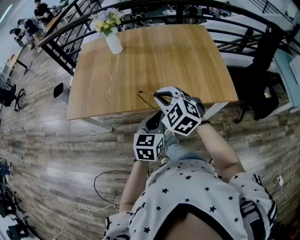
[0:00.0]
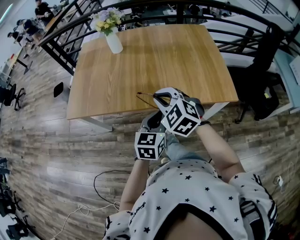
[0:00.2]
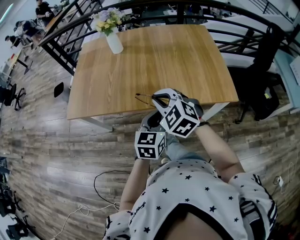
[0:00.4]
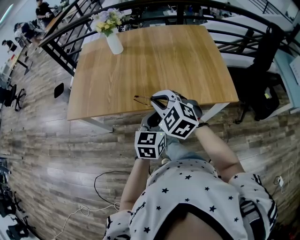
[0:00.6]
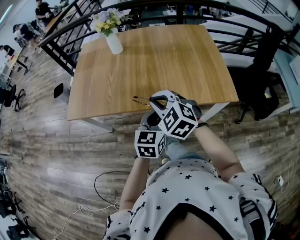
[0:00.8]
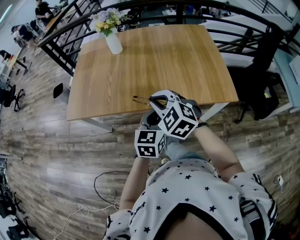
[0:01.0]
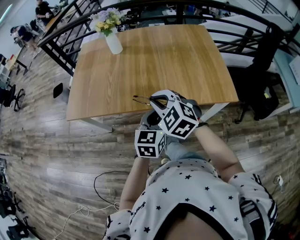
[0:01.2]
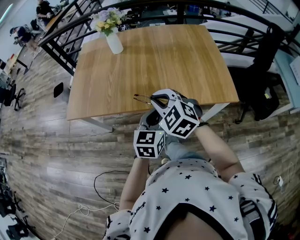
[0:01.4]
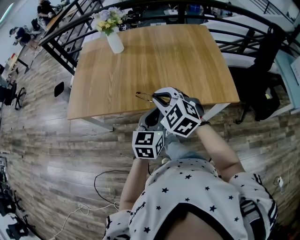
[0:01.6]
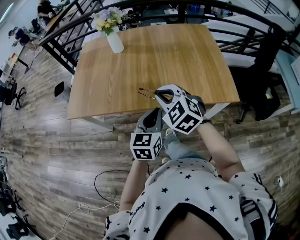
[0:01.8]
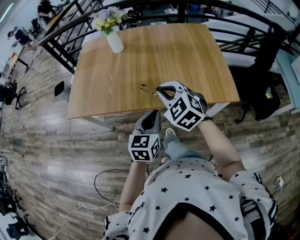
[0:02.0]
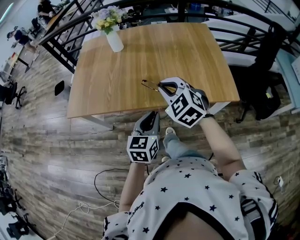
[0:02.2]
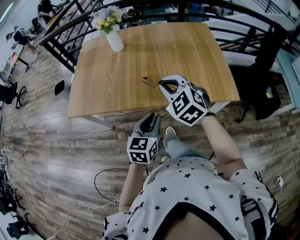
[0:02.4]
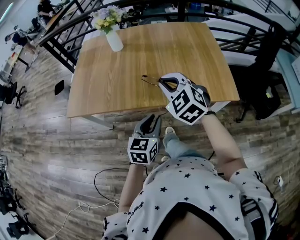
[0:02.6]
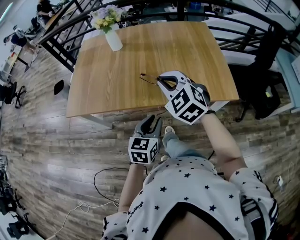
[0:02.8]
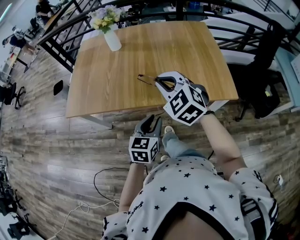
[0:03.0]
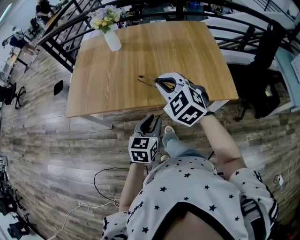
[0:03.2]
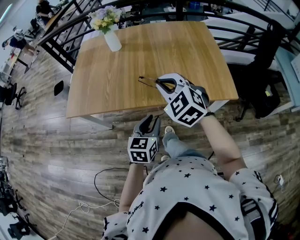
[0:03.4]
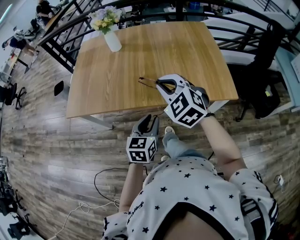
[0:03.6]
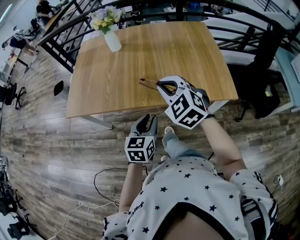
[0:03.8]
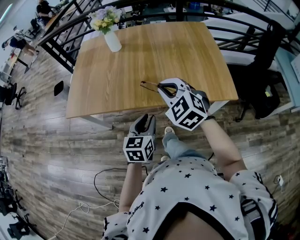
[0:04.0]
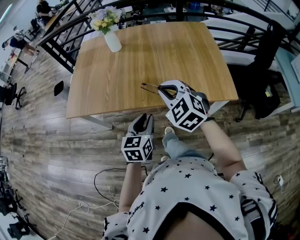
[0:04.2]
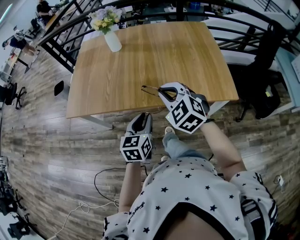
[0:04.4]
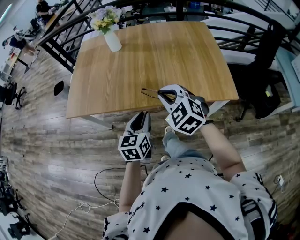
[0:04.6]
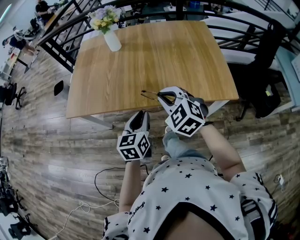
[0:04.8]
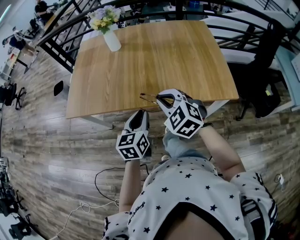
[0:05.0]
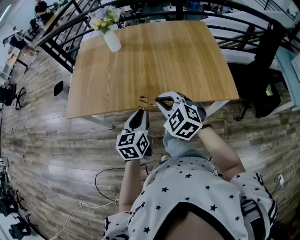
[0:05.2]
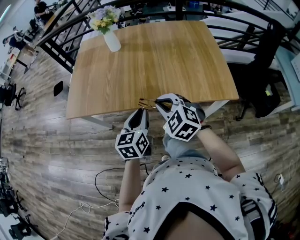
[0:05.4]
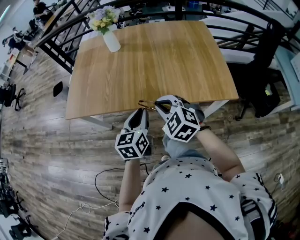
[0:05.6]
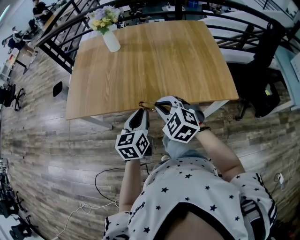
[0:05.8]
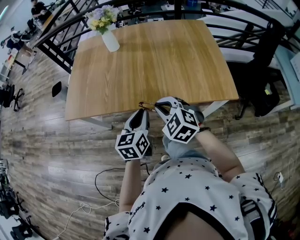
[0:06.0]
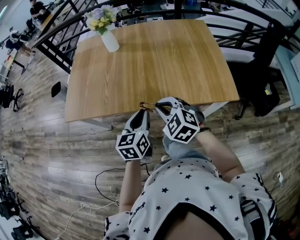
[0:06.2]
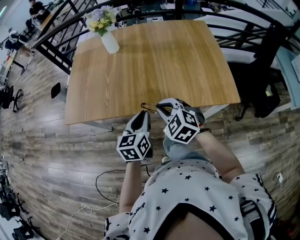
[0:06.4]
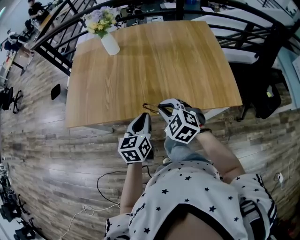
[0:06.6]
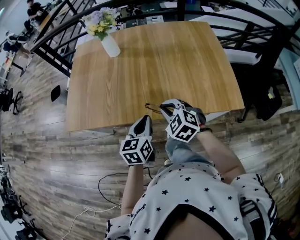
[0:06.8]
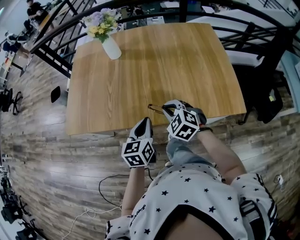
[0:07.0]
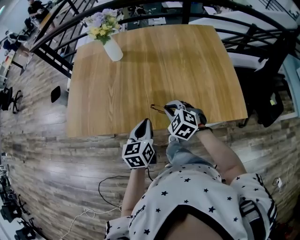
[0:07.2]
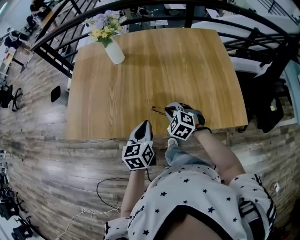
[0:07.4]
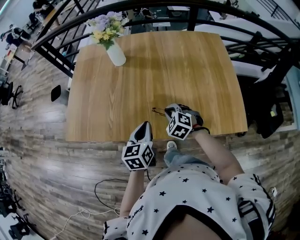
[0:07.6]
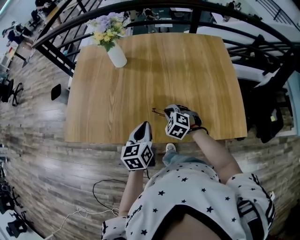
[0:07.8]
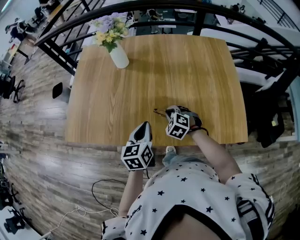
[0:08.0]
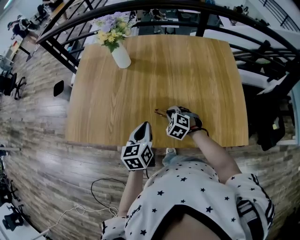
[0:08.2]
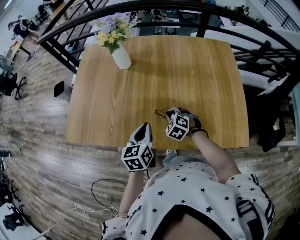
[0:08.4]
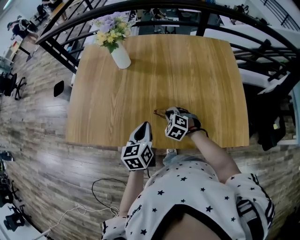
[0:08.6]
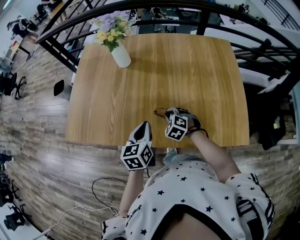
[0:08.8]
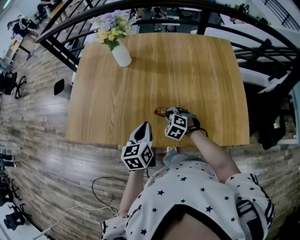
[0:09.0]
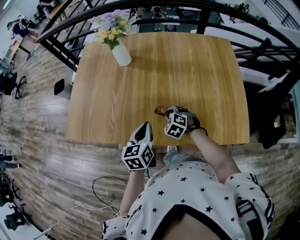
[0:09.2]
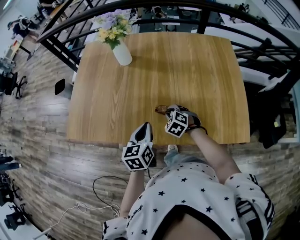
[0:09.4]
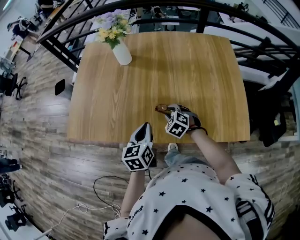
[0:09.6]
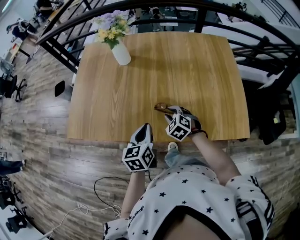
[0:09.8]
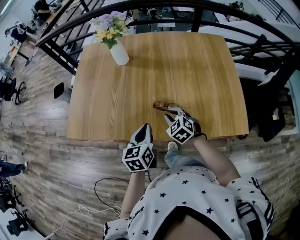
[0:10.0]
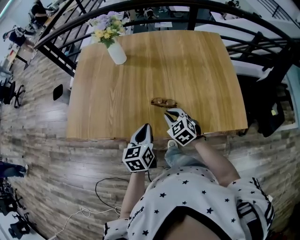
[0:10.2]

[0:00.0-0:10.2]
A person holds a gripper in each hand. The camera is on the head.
0:00.0 to 0:01.4: The grippers stay close to where they were, moving slightly.
0:01.4 to 0:03.0: The left gripper moves about 5 cm, and opens. Meanwhile the right gripper shifts by roughly 5 cm.
0:03.0 to 0:04.4: The grippers stay close to where they were, moving slightly.
0:04.4 to 0:05.8: The right gripper moves downward, roughly 5 cm.
0:05.8 to 0:07.2: The right gripper is displaced forward and downward by some 15 cm. Meanwhile the left gripper travels forward by roughly 10 cm.
0:07.2 to 0:08.8: The right gripper shifts about 15 cm downward and forward, while the left gripper shifts roughly 10 cm forward.
0:08.8 to 0:10.2: The left gripper moves backward, some 5 cm, while the right gripper moves backward and upward, about 10 cm, and rotates roughly 30 degrees.

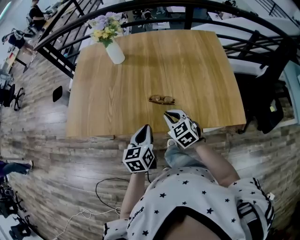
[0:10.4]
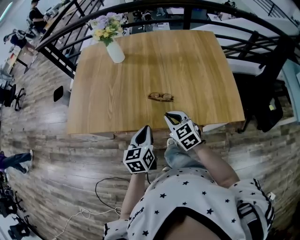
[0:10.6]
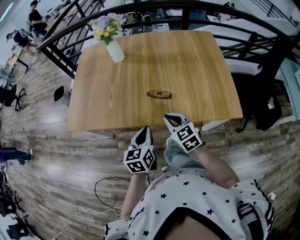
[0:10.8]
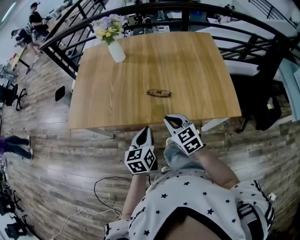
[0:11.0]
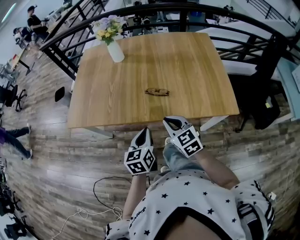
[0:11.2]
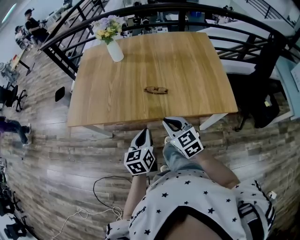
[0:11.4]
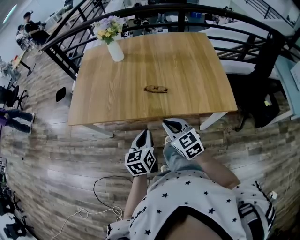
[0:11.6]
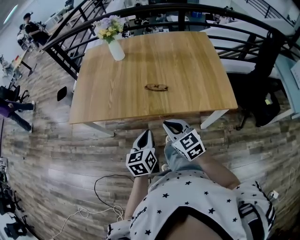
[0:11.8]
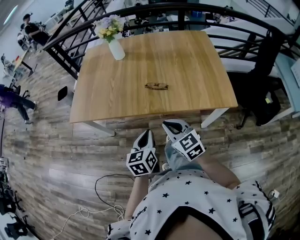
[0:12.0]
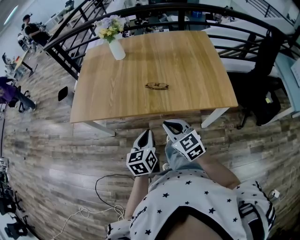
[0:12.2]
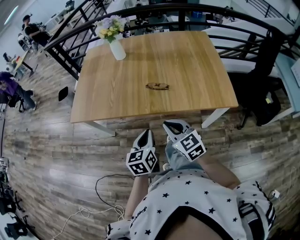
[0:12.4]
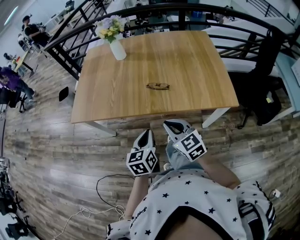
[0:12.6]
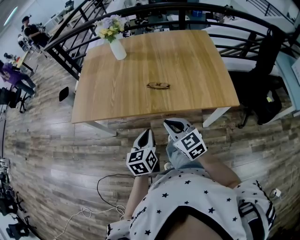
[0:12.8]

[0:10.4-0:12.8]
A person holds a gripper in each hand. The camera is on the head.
0:10.4 to 0:11.6: The left gripper travels backward by some 15 cm, while the right gripper heads backward and upward, covering approximately 15 cm.
0:11.6 to 0:12.8: The grippers make only small movements.

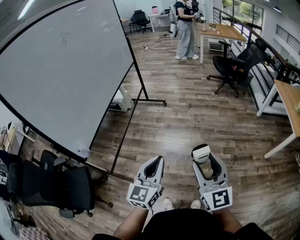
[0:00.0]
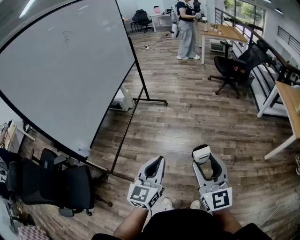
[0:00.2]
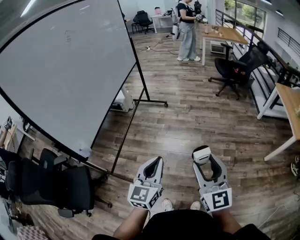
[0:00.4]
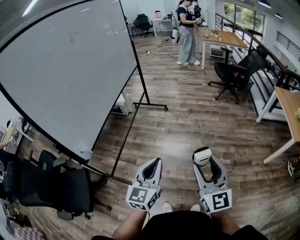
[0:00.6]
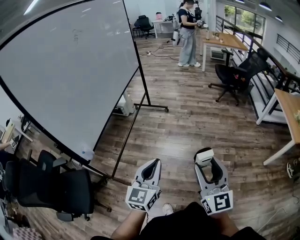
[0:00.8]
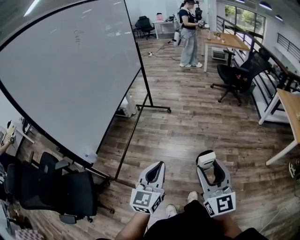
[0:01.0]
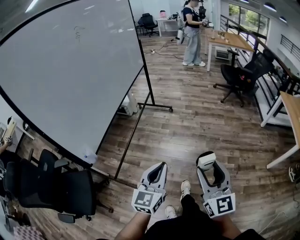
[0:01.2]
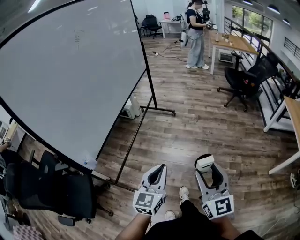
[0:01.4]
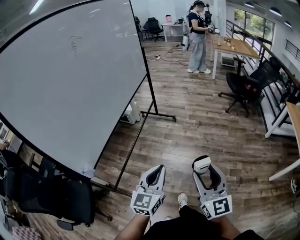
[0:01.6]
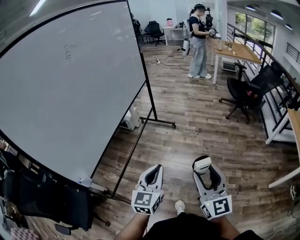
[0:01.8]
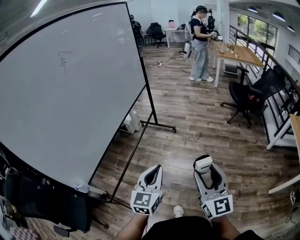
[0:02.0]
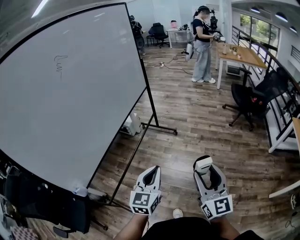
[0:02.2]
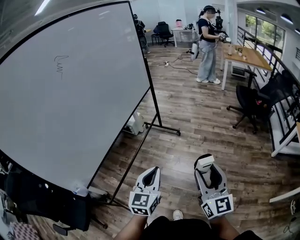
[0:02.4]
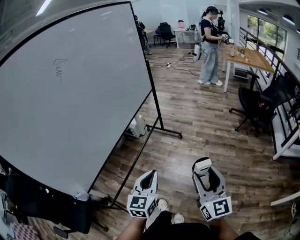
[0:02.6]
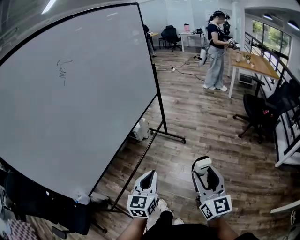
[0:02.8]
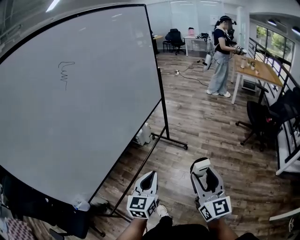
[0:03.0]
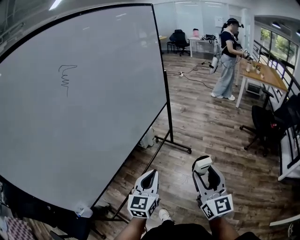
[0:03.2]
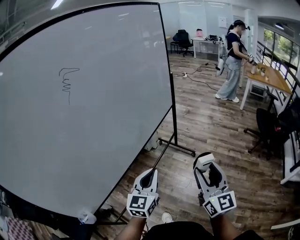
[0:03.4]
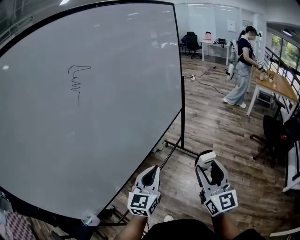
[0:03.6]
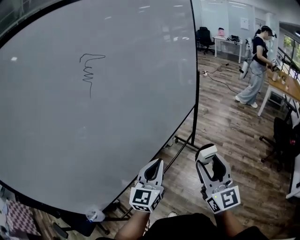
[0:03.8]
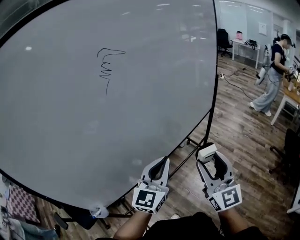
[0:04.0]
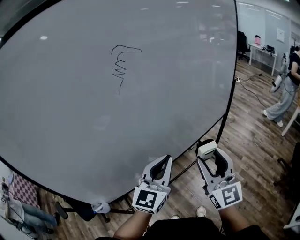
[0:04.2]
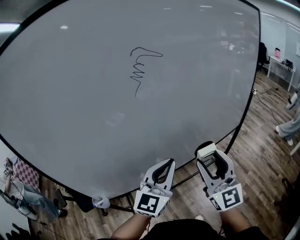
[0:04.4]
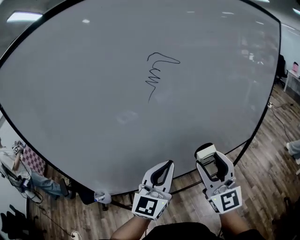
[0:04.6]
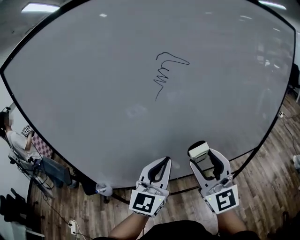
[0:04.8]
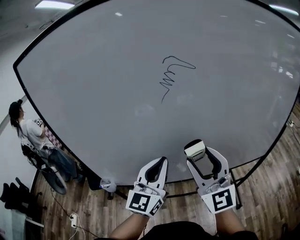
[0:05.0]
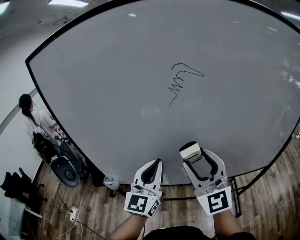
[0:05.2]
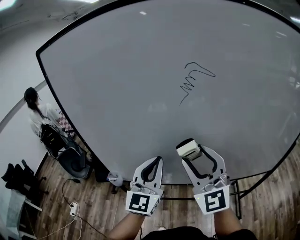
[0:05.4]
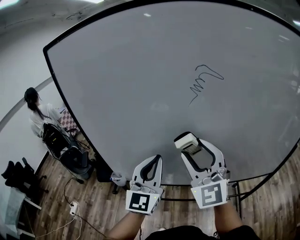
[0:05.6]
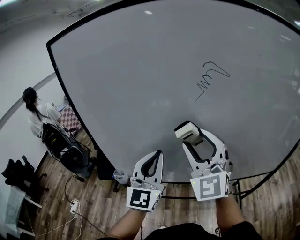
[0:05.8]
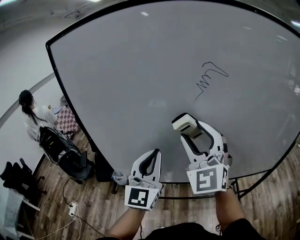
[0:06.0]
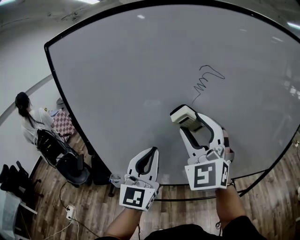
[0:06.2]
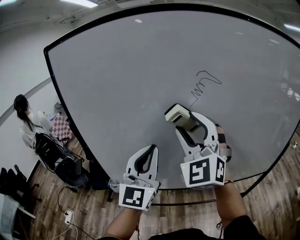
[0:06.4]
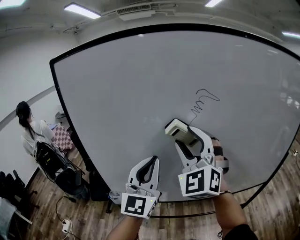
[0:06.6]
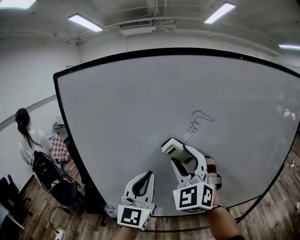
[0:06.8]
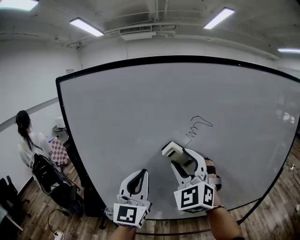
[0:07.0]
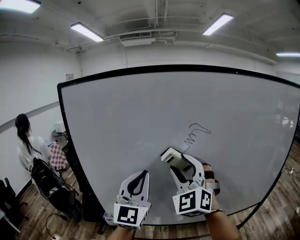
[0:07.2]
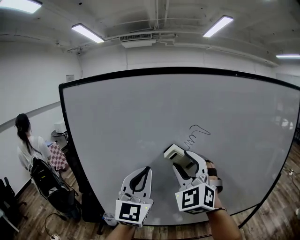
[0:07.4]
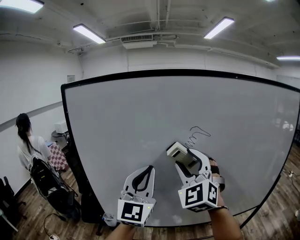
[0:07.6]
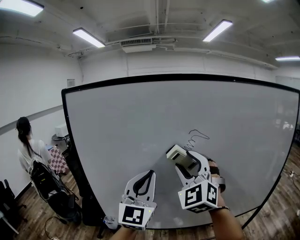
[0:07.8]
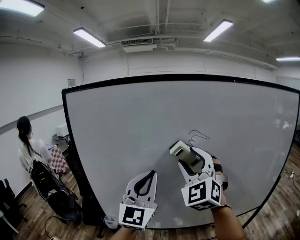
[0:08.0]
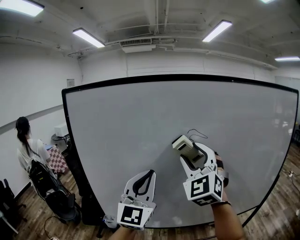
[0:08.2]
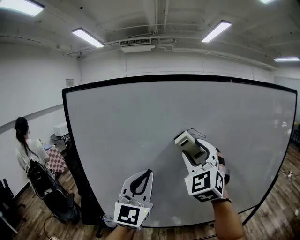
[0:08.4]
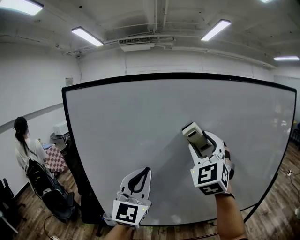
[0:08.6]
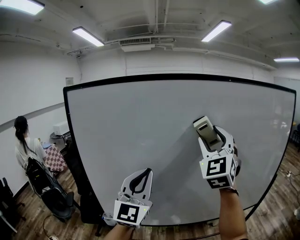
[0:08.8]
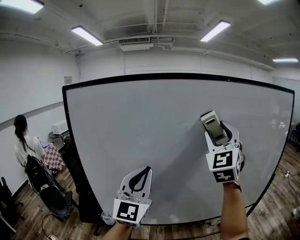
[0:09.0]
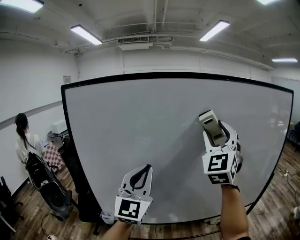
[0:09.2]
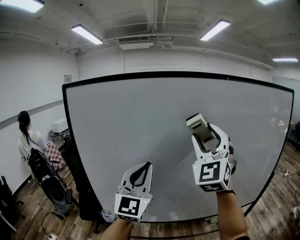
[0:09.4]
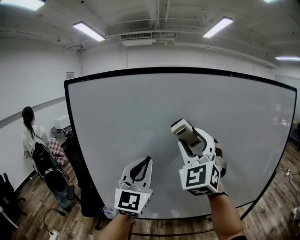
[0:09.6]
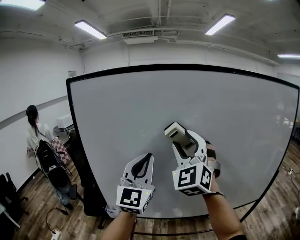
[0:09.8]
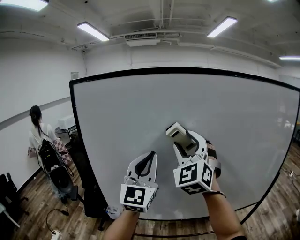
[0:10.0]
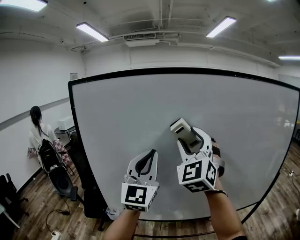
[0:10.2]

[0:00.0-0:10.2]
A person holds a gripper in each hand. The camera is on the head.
0:00.0 to 0:01.4: Both grippers travel together forward and to the left, approximately 10 cm.
0:01.4 to 0:03.0: The two grippers go some 35 cm forward.
0:03.0 to 0:04.4: The right gripper moves some 40 cm, and turns by about 40 degrees; the left gripper changes place by some 30 cm, and turns by some 30 degrees.
0:04.4 to 0:05.8: The right gripper shifts by roughly 20 cm, and changes its angle by roughly 40 degrees. The left gripper shifts by roughly 15 cm, and swivels approximately 40 degrees.
0:05.8 to 0:07.2: Both grippers travel together upward, approximately 10 cm.
0:07.2 to 0:08.8: The right gripper is displaced to the right and upward by roughly 15 cm, while the left gripper ends up approximately 5 cm from where it was.
0:08.8 to 0:10.2: The right gripper heads to the left, covering approximately 10 cm.

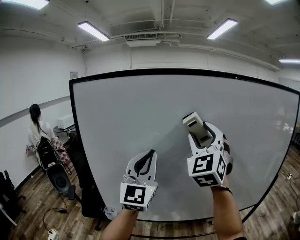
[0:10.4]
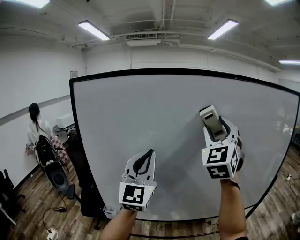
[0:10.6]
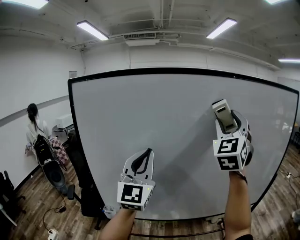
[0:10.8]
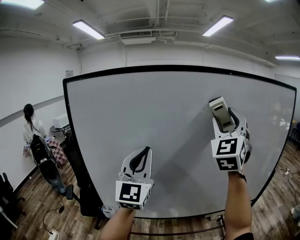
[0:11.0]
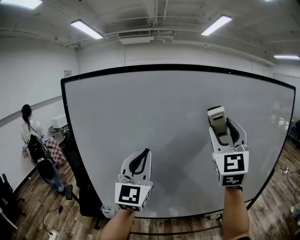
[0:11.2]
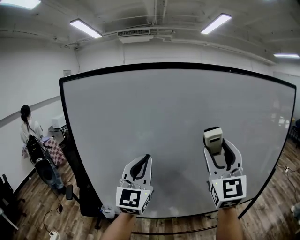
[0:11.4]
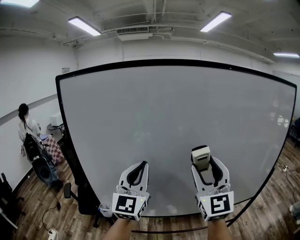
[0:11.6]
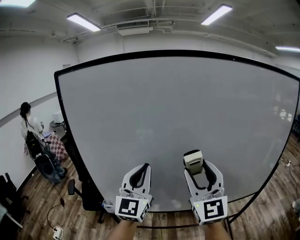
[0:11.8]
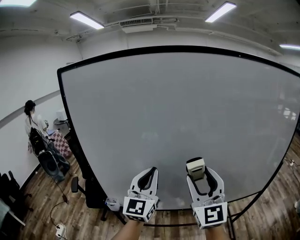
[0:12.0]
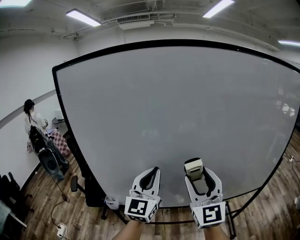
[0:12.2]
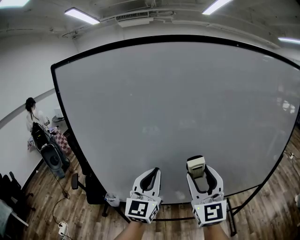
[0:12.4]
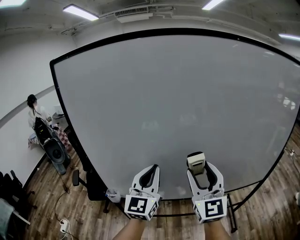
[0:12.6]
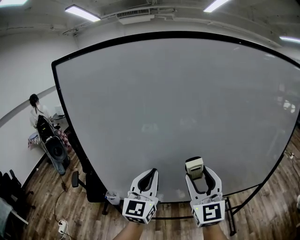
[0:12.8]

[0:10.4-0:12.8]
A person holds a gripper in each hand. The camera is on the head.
0:10.4 to 0:11.6: The right gripper heads downward, backward and to the right, covering some 15 cm, and swivels roughly 30 degrees; the left gripper heads downward, covering about 10 cm.
0:11.6 to 0:12.8: Both grippers travel together downward, some 10 cm.
